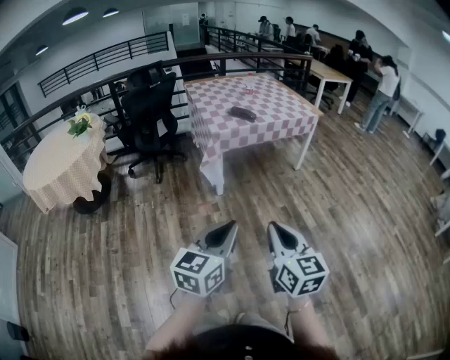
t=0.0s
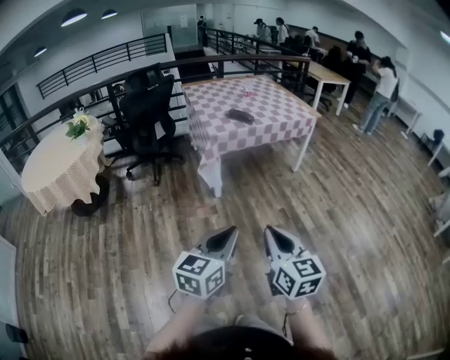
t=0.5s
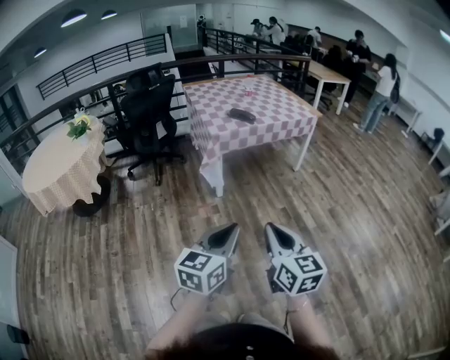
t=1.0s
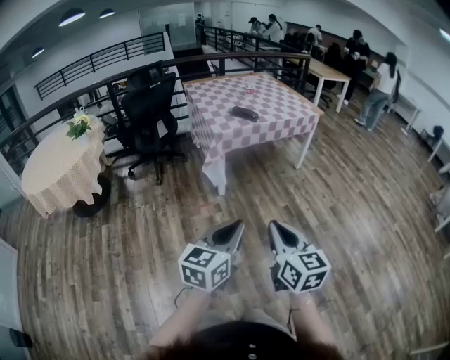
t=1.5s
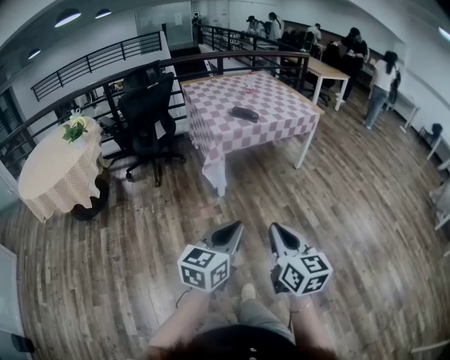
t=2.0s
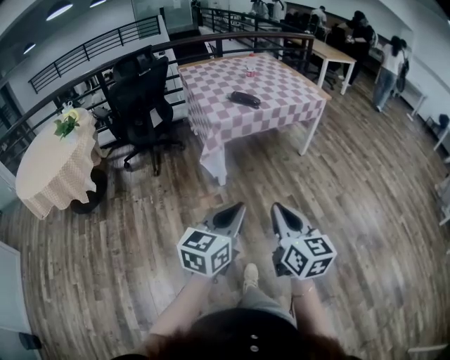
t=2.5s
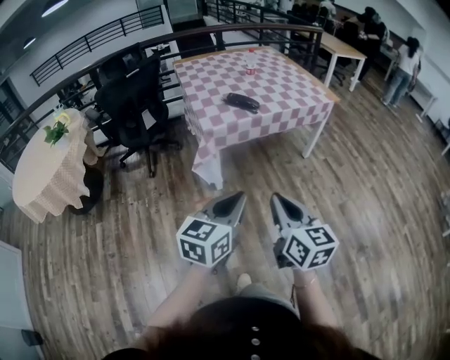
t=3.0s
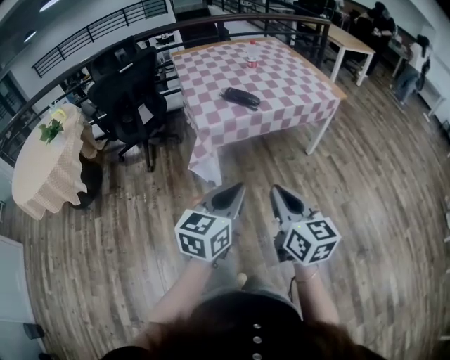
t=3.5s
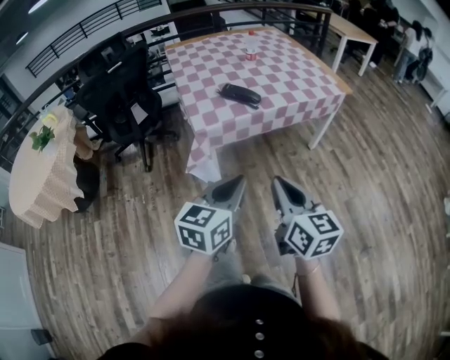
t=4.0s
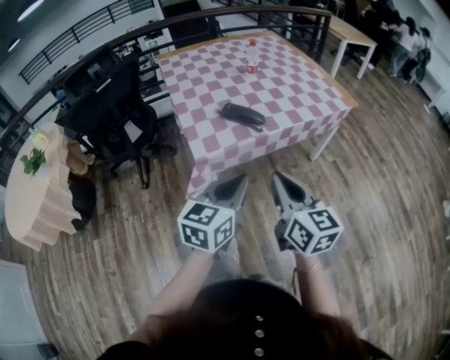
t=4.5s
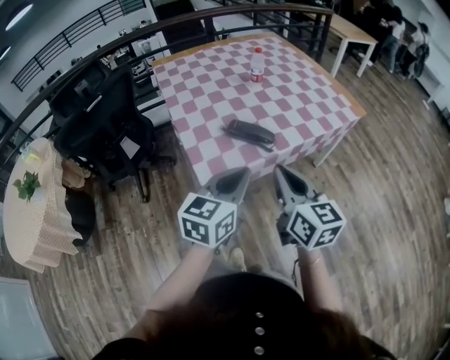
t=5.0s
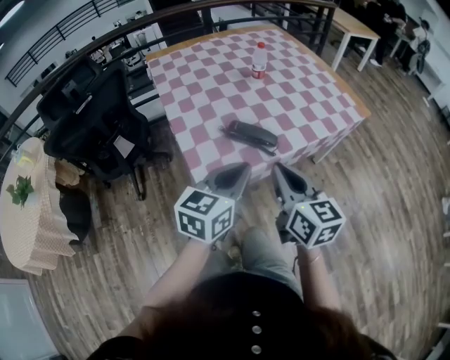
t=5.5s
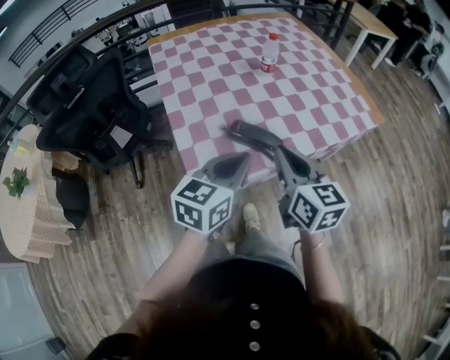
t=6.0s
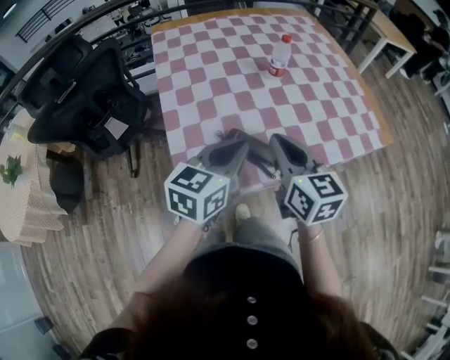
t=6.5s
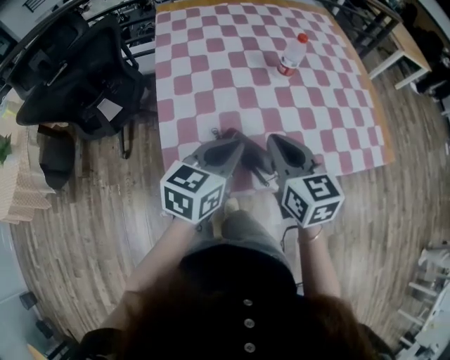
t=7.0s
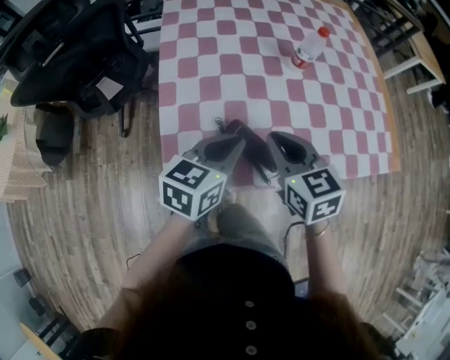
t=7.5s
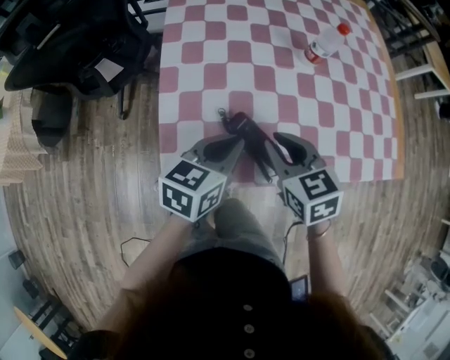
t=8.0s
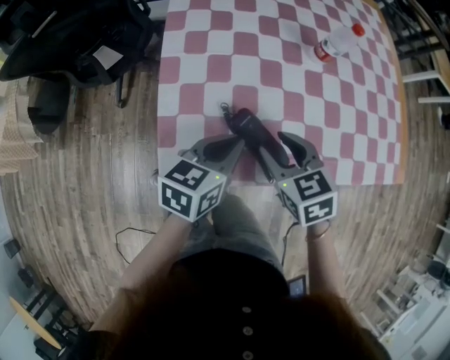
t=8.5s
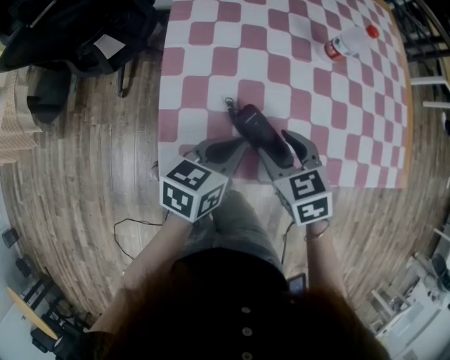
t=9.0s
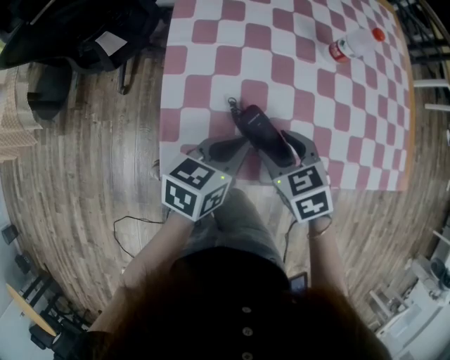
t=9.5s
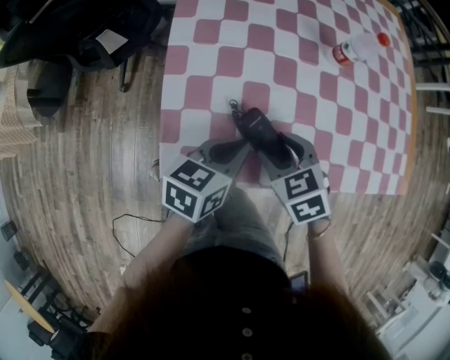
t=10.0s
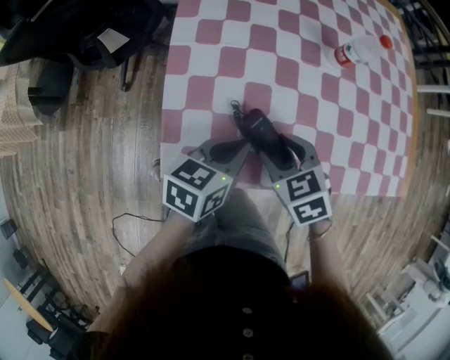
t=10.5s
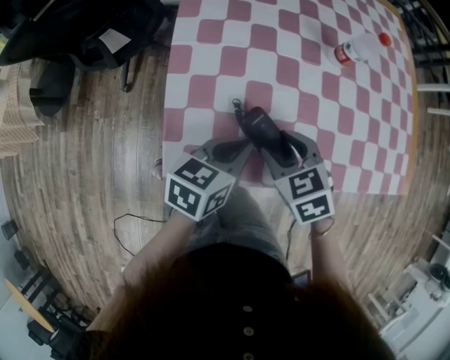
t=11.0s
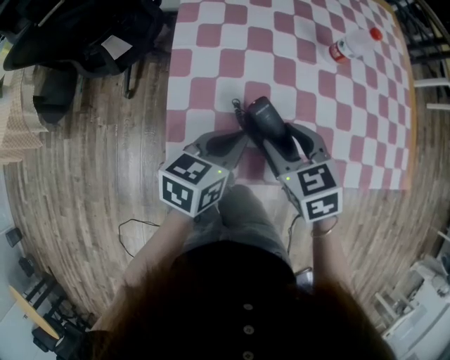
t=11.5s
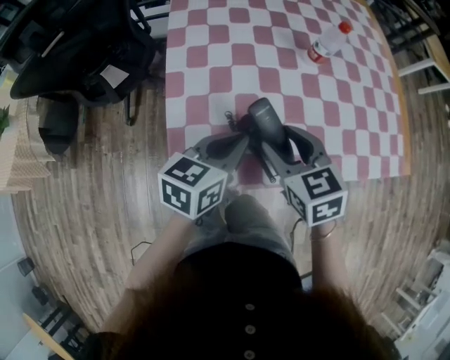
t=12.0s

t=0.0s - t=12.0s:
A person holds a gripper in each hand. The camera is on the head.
t=0.0s - t=2.0s: The right gripper moves approximately 5 cm. The left gripper shifts by some 5 cm.
t=2.0s - t=4.0s: The two grippers travel together, forward, some 40 cm.
t=4.0s - t=6.0s: Both grippers move forward, some 40 cm.
t=6.0s - t=8.0s: Both grippers travel together forward and downward, approximately 15 cm. The left gripper turns by roughly 20 degrees, while the right gripper turns by approximately 40 degrees.
t=8.0s - t=10.0s: The right gripper shifts approximately 10 cm downward, turns by roughly 20 degrees, and opens, while the left gripper moves downward, about 5 cm.
t=10.0s - t=12.0s: The left gripper is displaced upward by roughly 5 cm, while the right gripper moves upward, roughly 10 cm, and swivels some 20 degrees.

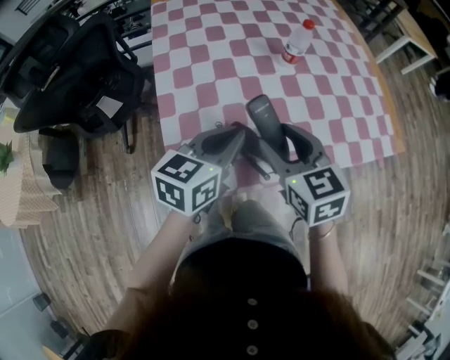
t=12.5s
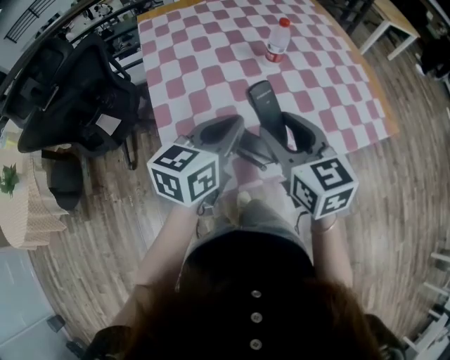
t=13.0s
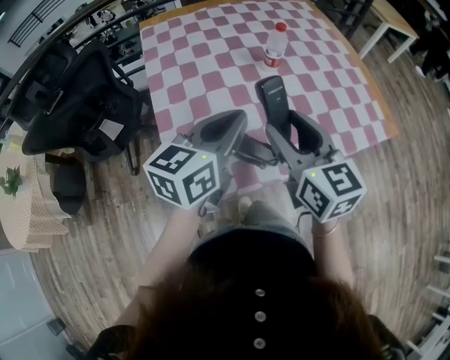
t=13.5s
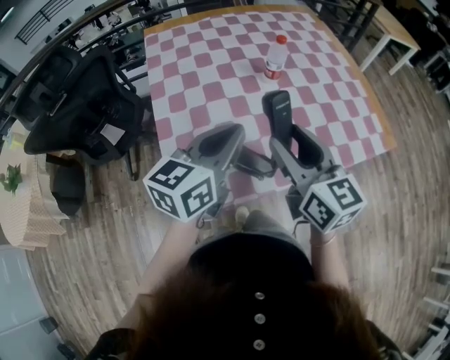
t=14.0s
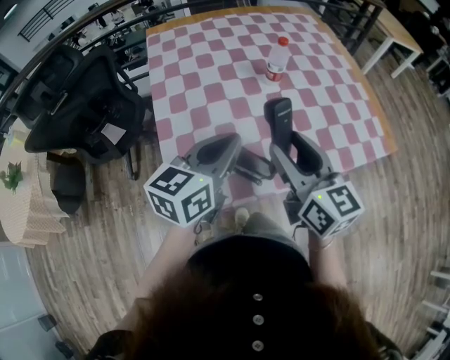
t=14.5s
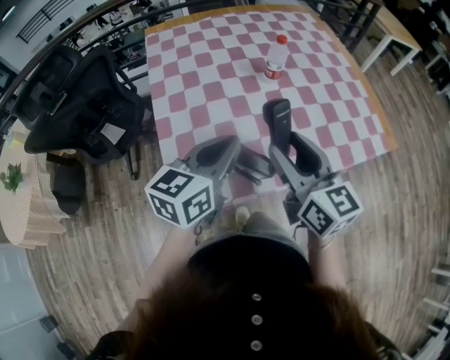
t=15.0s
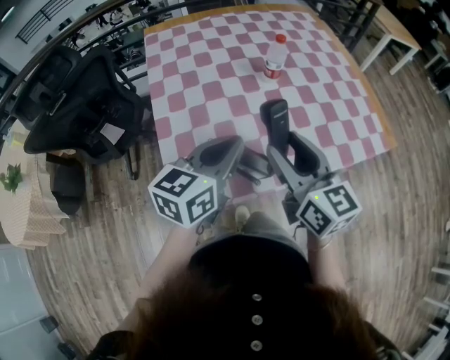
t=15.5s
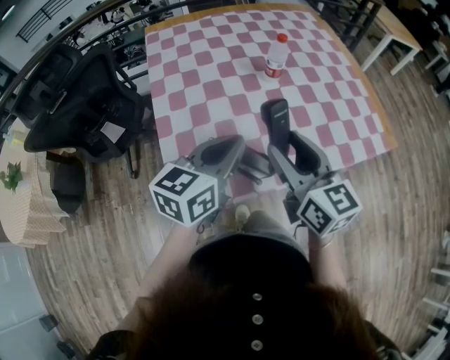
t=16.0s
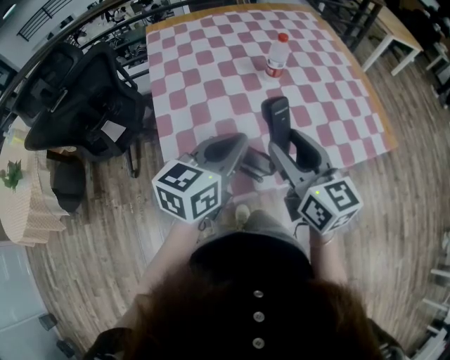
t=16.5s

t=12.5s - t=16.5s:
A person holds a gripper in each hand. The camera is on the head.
t=12.5s - t=14.5s: The right gripper heads upward and to the right, covering roughly 10 cm, and swivels approximately 30 degrees, while the left gripper moves upward, some 5 cm.
t=14.5s - t=16.5s: The grippers move only a little.

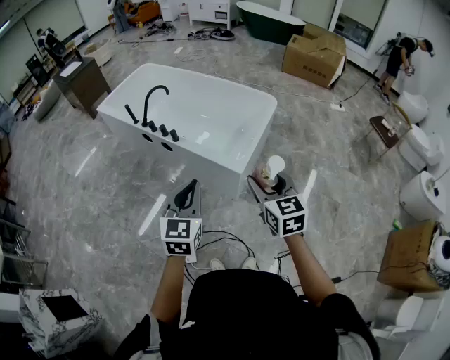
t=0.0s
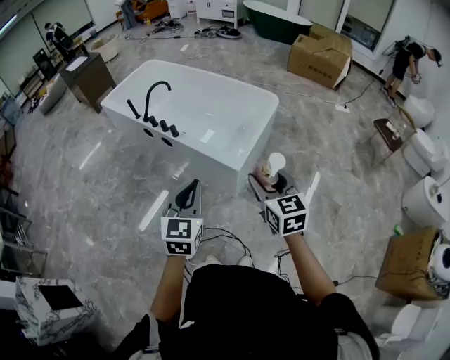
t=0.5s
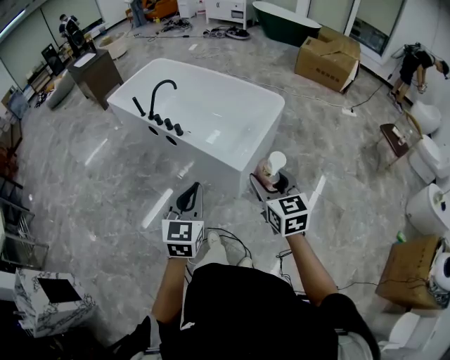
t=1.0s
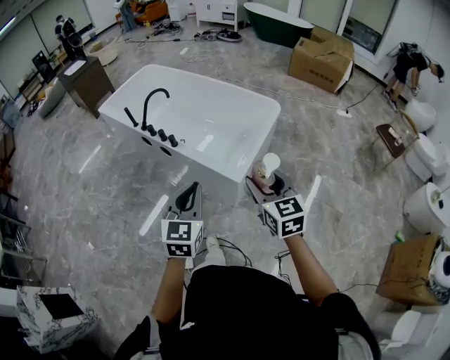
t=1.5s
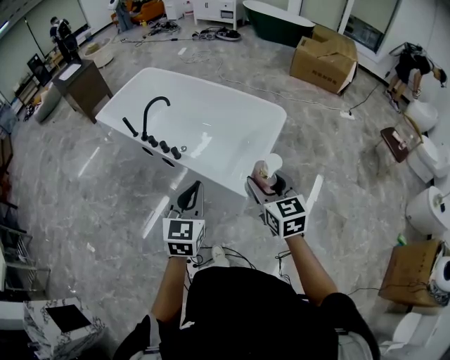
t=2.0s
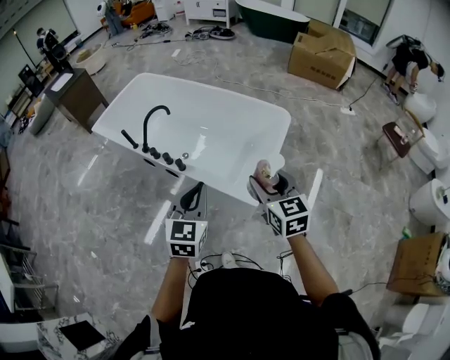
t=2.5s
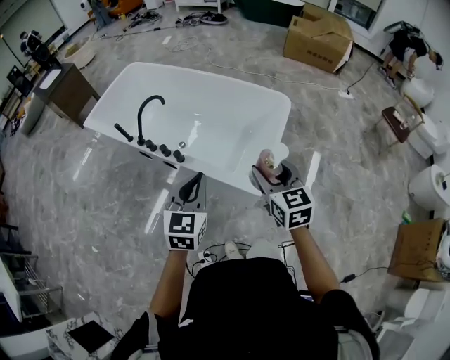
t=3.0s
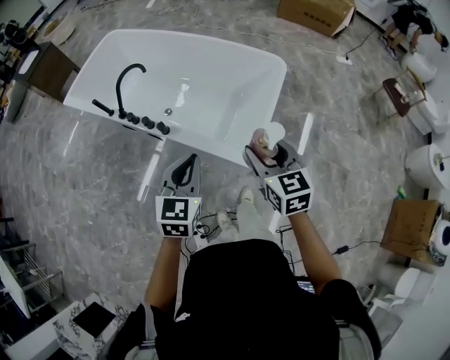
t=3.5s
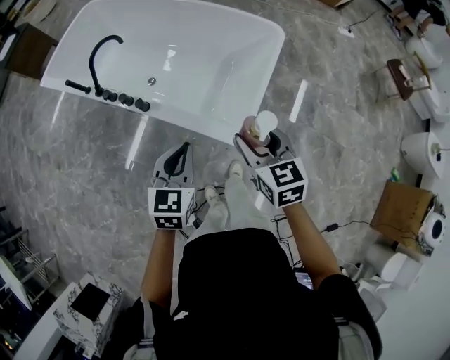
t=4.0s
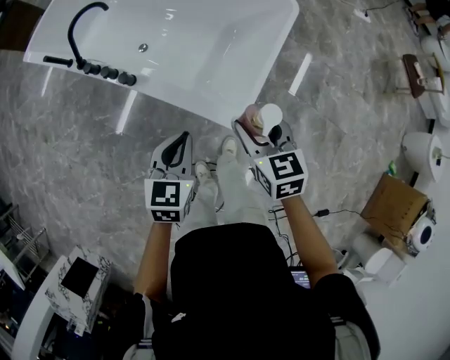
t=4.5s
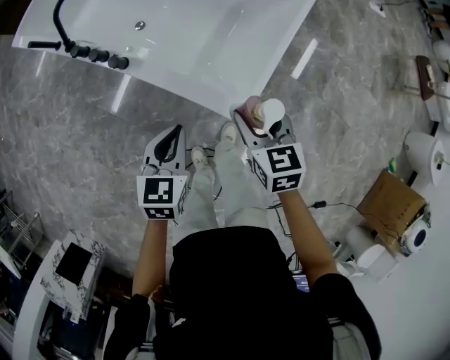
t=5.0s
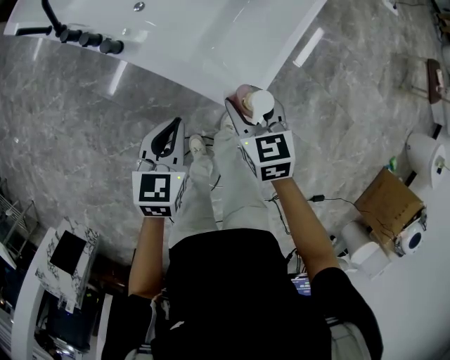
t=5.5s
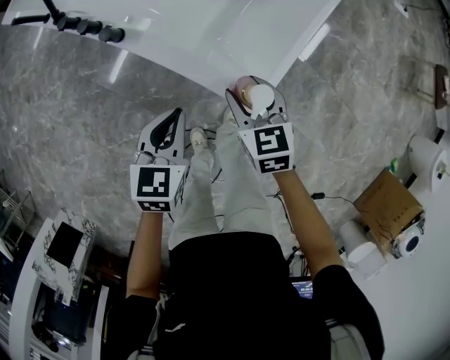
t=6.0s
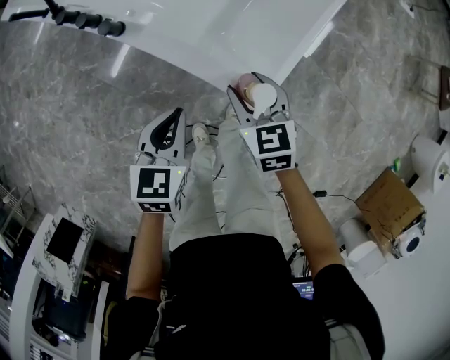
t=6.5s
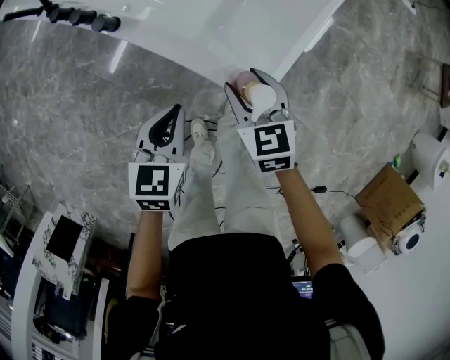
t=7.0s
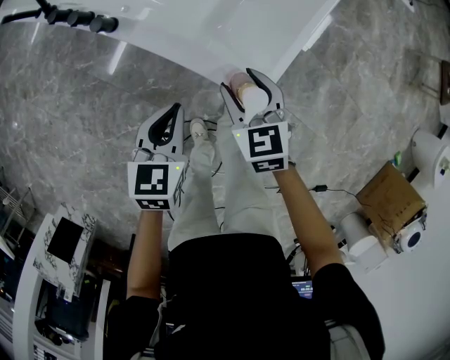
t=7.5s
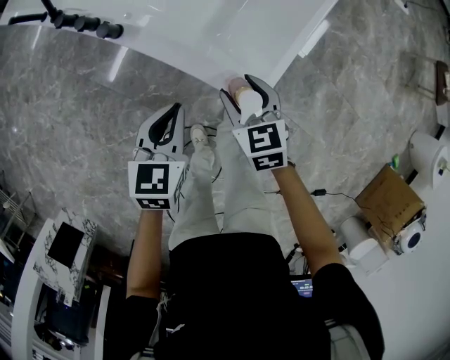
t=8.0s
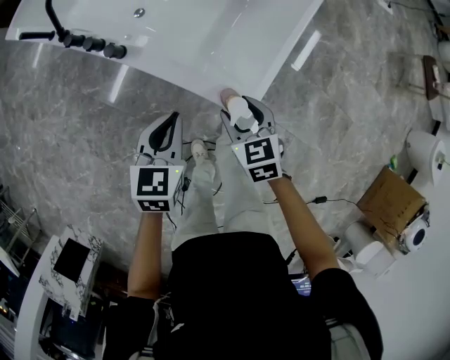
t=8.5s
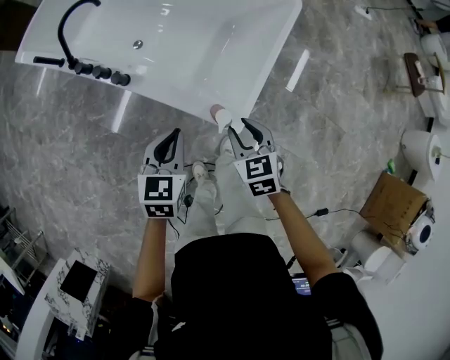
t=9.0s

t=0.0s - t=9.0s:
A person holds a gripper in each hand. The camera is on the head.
t=0.0s - t=2.0s: Both grippers move forward, roughly 15 cm.
t=2.0s - t=4.5s: The grippers both shift downward and forward by some 30 cm. The left gripper rotates roughly 30 degrees; the right gripper changes its angle by roughly 20 degrees.
t=4.5s - t=7.0s: Both grippers move downward, roughly 20 cm.
t=7.0s - t=9.0s: The left gripper shifts roughly 10 cm upward. Meanwhile the right gripper heads upward and backward, covering some 10 cm.

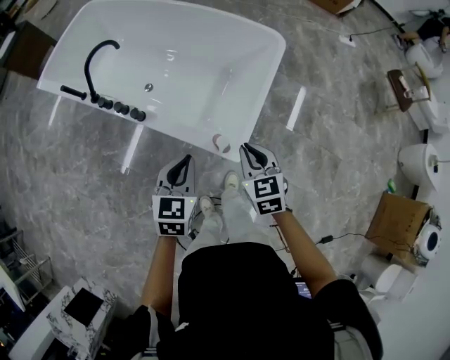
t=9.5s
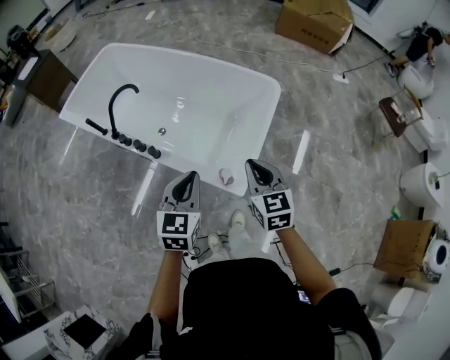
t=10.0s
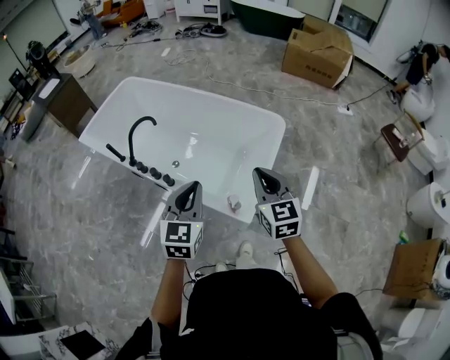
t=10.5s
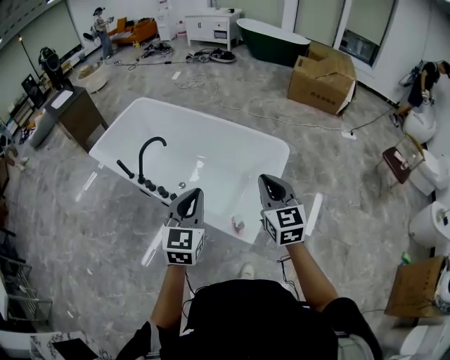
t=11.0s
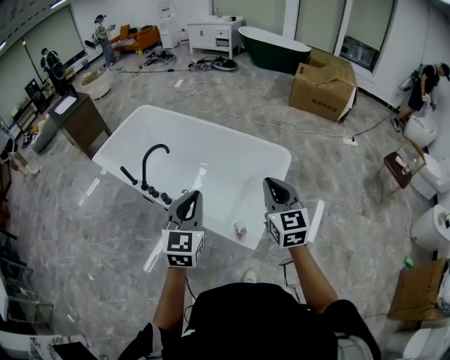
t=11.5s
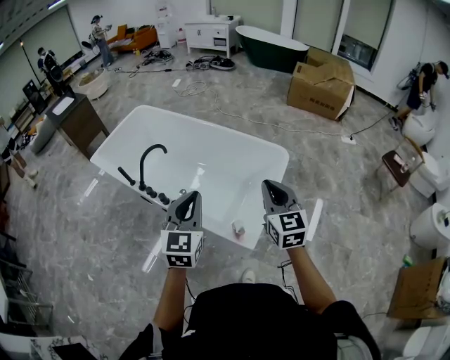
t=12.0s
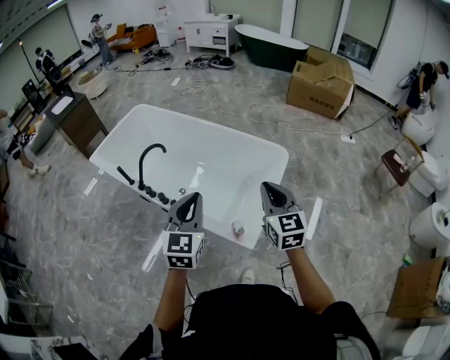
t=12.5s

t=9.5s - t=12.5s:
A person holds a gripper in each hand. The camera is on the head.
t=9.5s - t=11.0s: The grippers both shift upward by some 25 cm. The right gripper swivels roughly 30 degrees. Meanwhile the left gripper rotates roughly 30 degrees.
t=11.0s - t=12.5s: There are only small adjustments of the grippers.
